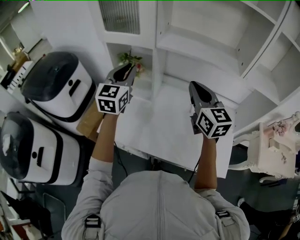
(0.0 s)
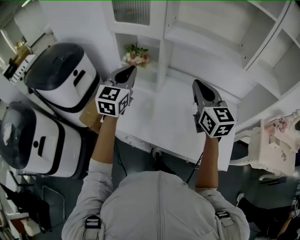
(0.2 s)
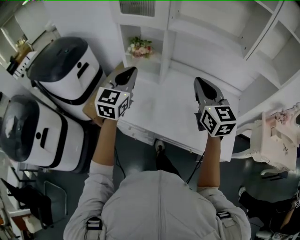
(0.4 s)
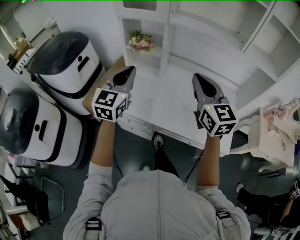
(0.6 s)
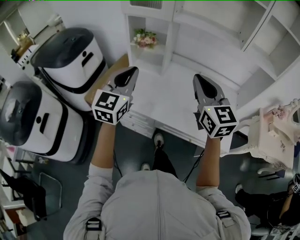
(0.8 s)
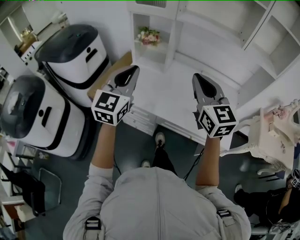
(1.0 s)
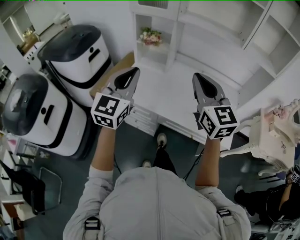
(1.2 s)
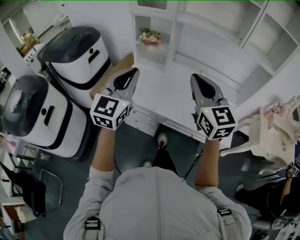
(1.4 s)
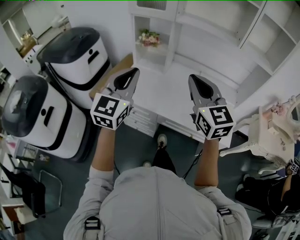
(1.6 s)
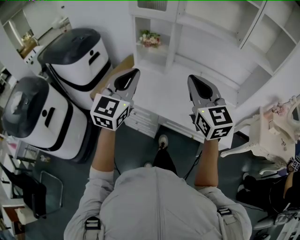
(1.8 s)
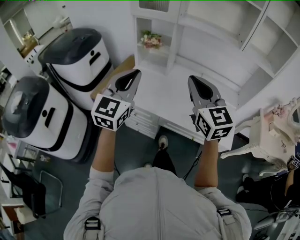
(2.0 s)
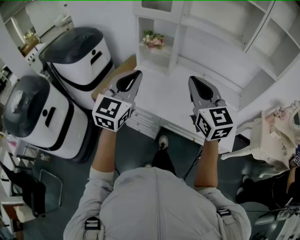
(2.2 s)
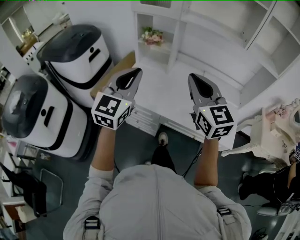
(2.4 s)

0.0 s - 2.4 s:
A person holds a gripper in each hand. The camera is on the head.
0.0 s - 1.2 s: Both grippers move backward, some 25 cm.
1.2 s - 2.4 s: The grippers move only a little.

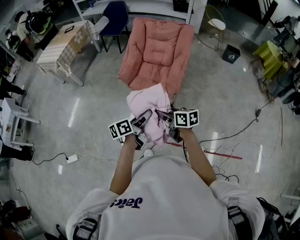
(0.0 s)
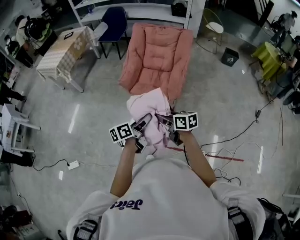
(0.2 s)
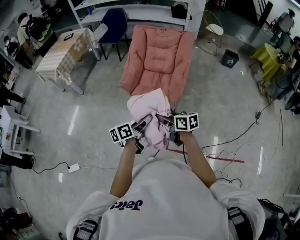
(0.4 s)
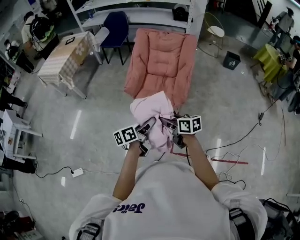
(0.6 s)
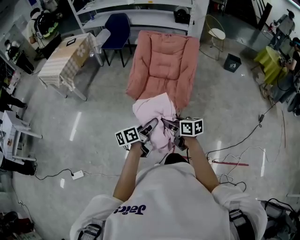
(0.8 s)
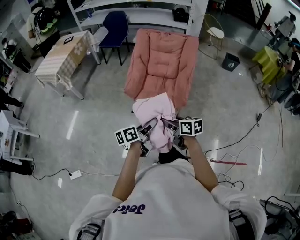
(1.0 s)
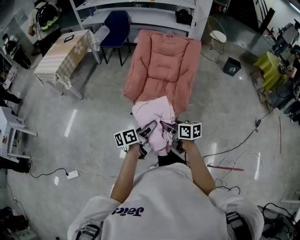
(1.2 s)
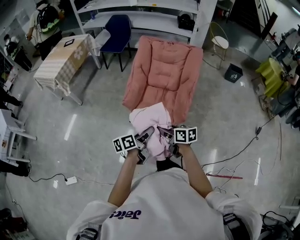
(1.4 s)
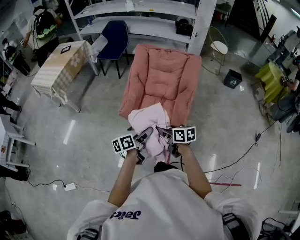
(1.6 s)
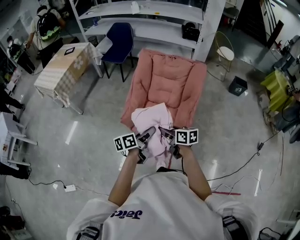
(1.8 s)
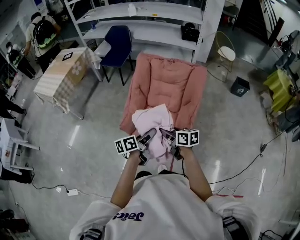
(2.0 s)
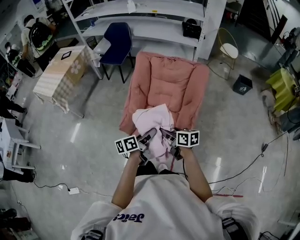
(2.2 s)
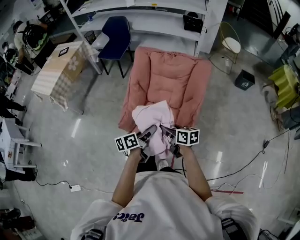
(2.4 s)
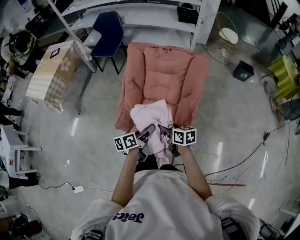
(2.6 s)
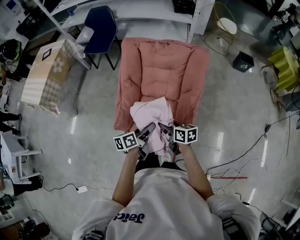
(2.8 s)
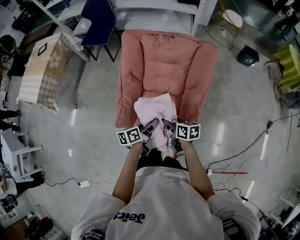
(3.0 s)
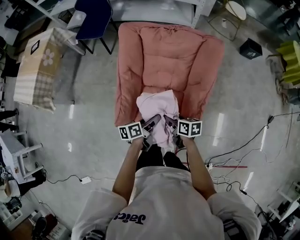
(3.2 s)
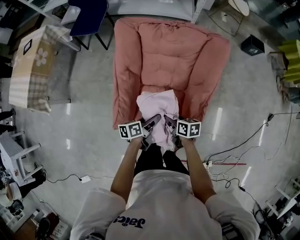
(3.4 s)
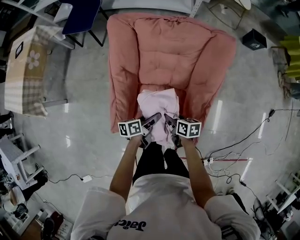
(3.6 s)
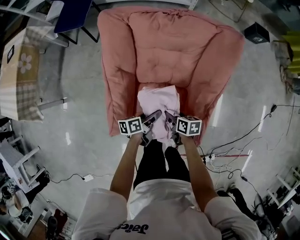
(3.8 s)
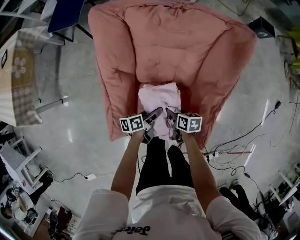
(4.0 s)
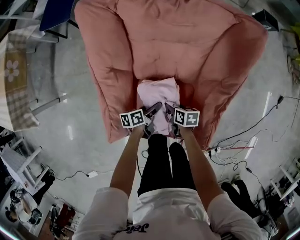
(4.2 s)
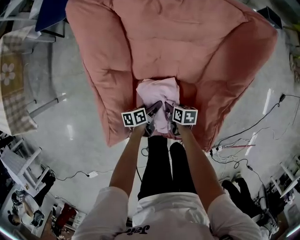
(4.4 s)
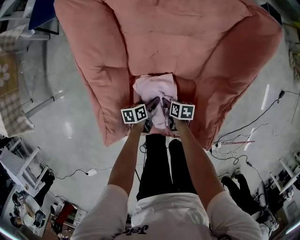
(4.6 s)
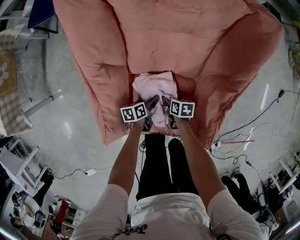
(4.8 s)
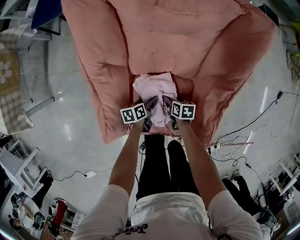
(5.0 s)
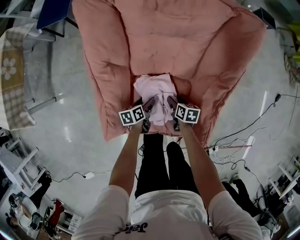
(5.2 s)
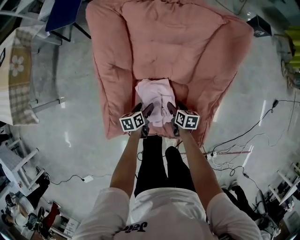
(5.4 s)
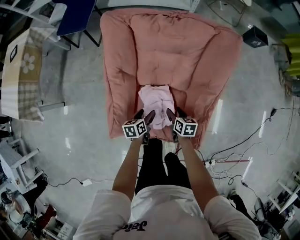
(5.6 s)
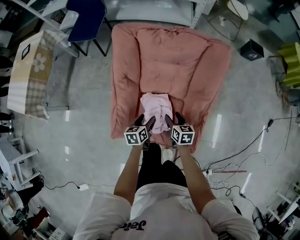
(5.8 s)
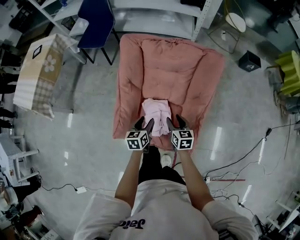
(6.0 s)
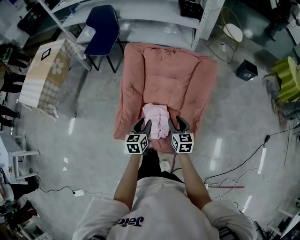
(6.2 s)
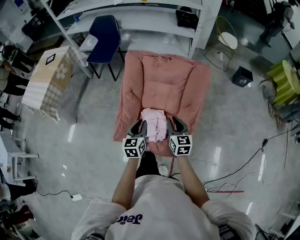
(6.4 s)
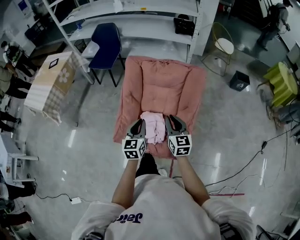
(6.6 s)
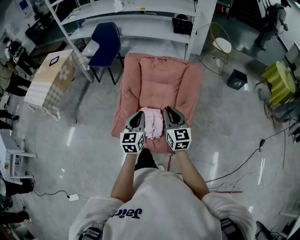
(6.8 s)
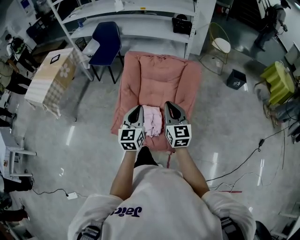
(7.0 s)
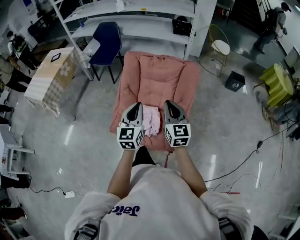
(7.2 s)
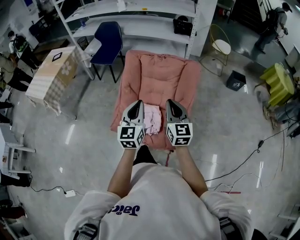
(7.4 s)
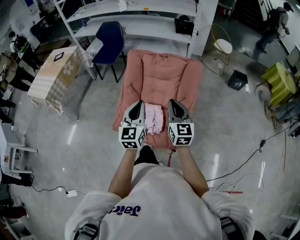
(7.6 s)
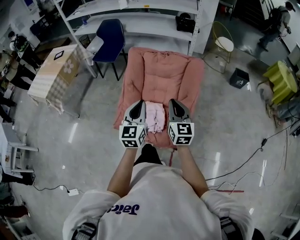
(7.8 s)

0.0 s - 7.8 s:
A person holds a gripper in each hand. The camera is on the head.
0.0 s - 1.6 s: The grippers both shift forward by approximately 20 cm.
1.6 s - 3.2 s: Both grippers move forward and downward, about 35 cm. The right gripper changes its angle by approximately 20 degrees.
3.2 s - 4.6 s: Both grippers move downward, some 35 cm. The left gripper rotates about 20 degrees. Meanwhile the right gripper rotates roughly 30 degrees.
4.6 s - 6.2 s: The two grippers go about 40 cm upward. The left gripper rotates roughly 50 degrees. Meanwhile the right gripper tips its fingers upward by some 30 degrees.
6.2 s - 7.8 s: Both grippers travel together upward and backward, about 25 cm. The right gripper changes its angle by approximately 30 degrees, and closes its fingers. Meanwhile the left gripper rotates some 30 degrees, and closes up.

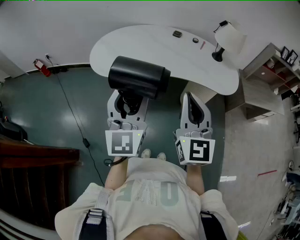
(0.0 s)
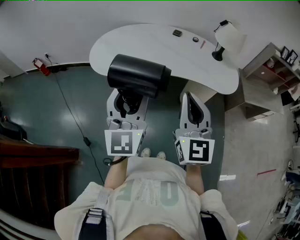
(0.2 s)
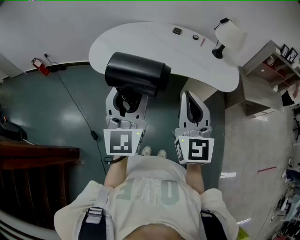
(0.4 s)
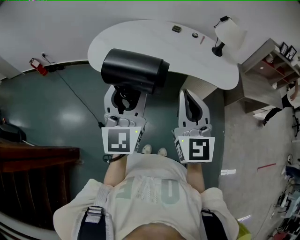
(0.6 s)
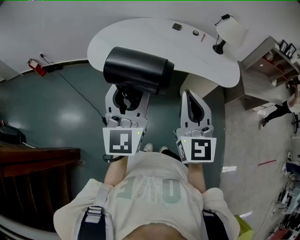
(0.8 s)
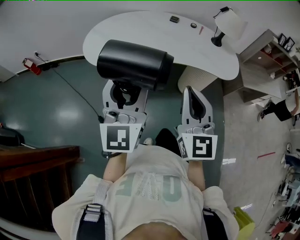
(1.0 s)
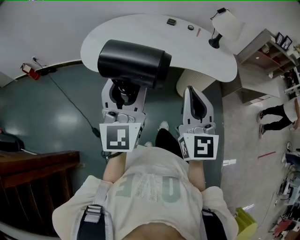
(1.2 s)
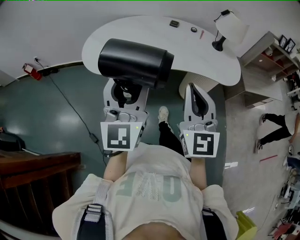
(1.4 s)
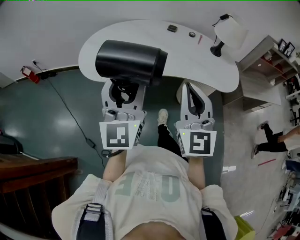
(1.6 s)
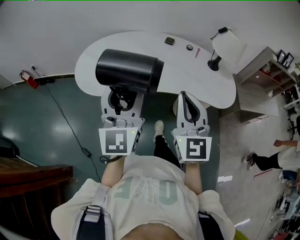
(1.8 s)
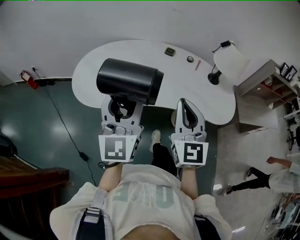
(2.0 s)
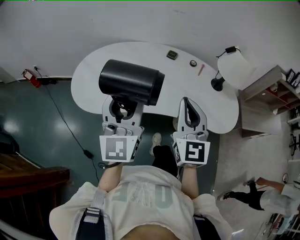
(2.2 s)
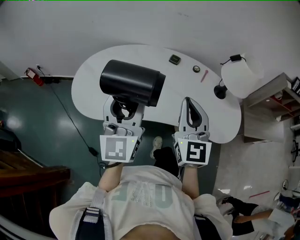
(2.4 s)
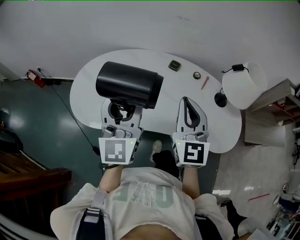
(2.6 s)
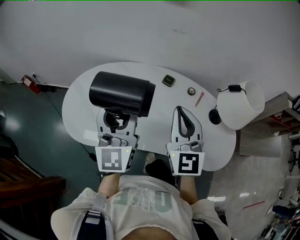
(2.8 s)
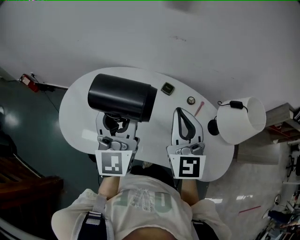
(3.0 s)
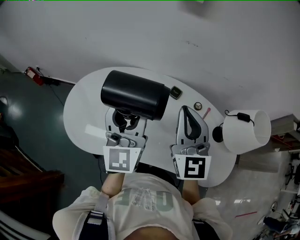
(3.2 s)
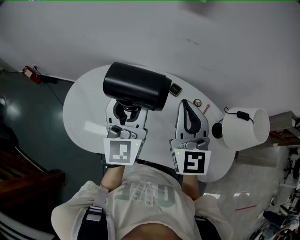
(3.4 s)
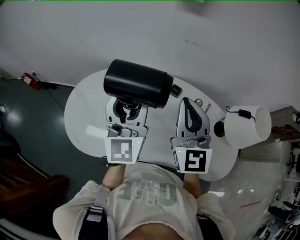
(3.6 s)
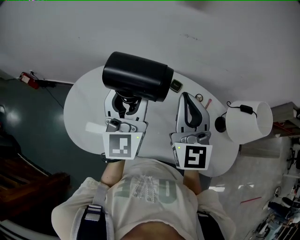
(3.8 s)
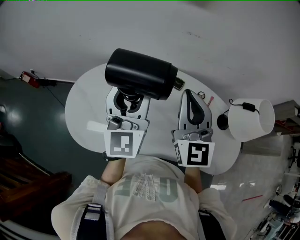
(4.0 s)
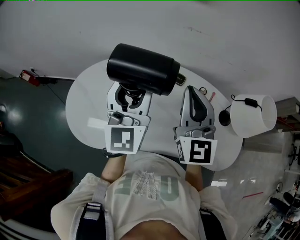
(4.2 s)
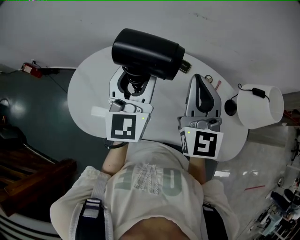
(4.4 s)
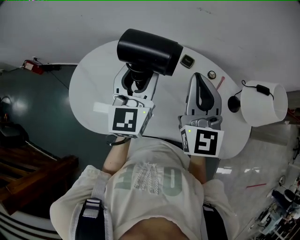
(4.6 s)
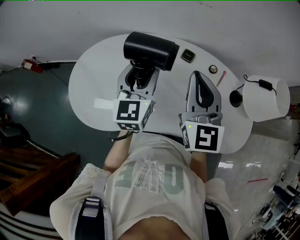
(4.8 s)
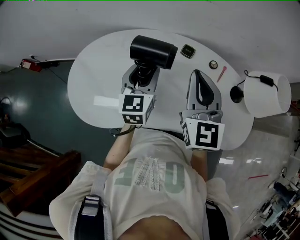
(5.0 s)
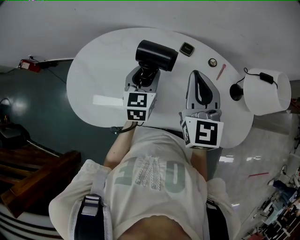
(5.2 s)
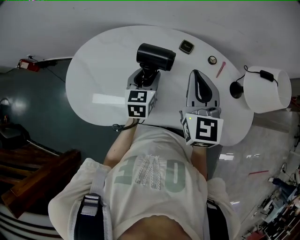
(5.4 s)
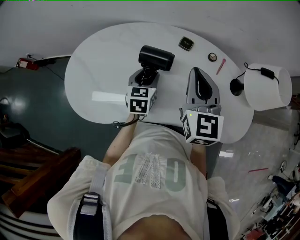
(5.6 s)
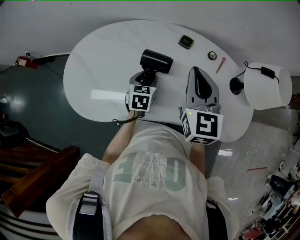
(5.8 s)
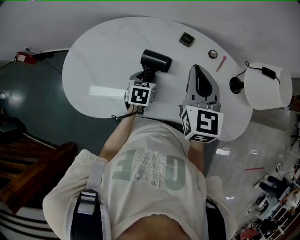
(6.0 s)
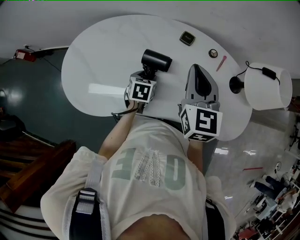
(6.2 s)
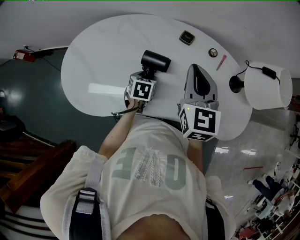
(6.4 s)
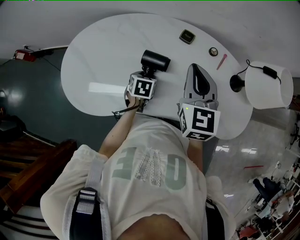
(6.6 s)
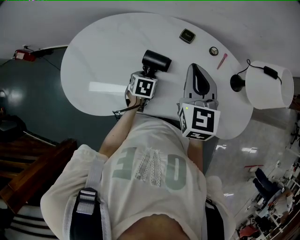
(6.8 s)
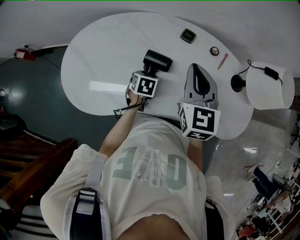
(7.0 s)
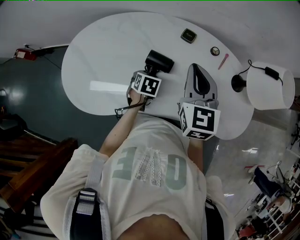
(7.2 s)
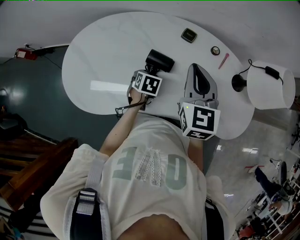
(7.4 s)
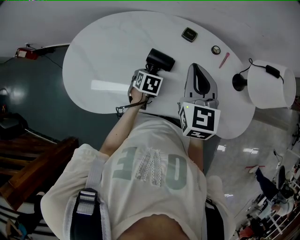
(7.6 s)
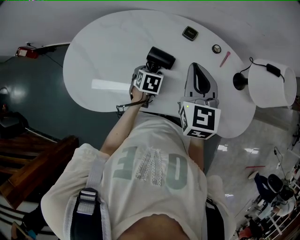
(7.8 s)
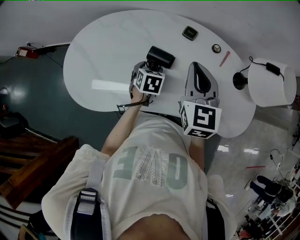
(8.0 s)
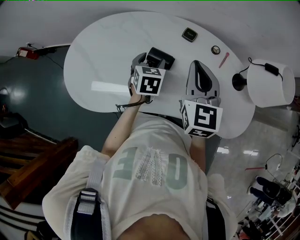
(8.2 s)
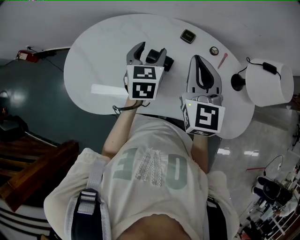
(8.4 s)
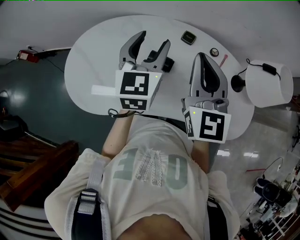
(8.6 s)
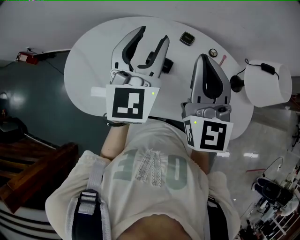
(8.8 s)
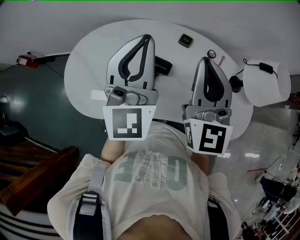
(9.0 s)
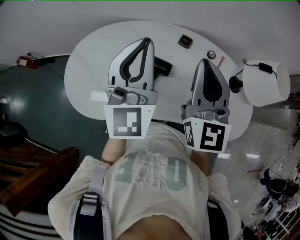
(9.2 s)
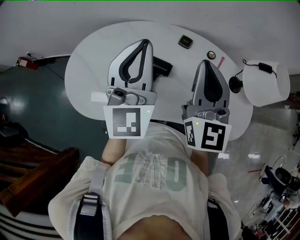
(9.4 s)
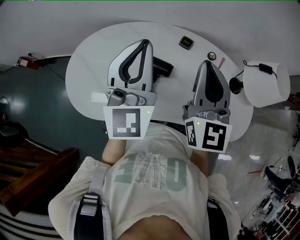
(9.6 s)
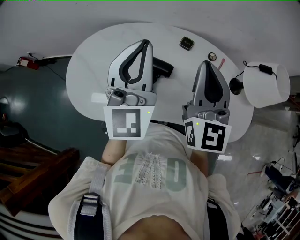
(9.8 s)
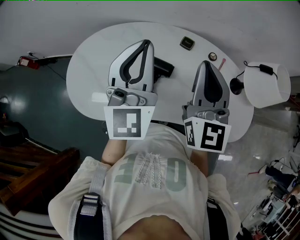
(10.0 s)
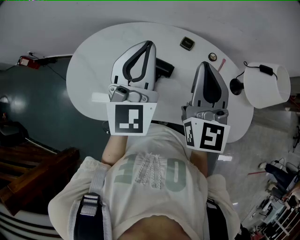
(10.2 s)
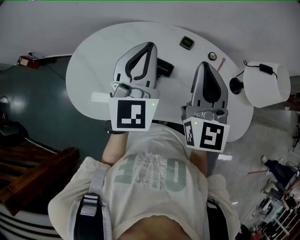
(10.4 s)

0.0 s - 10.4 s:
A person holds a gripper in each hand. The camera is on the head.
0.0 s - 1.4 s: The left gripper changes place by approximately 5 cm; the right gripper shifts by approximately 5 cm.
1.4 s - 3.0 s: The pair of grippers is taken forward, approximately 40 cm.
3.0 s - 4.4 s: The left gripper heads forward, covering some 10 cm; the right gripper is displaced forward by about 5 cm.
4.4 s - 6.0 s: The left gripper is displaced downward by approximately 35 cm, and tilts its fingers approximately 50 degrees downward. The right gripper goes approximately 10 cm downward.
6.0 s - 7.4 s: The grippers make only small movements.
7.4 s - 9.0 s: The left gripper moves upward, some 40 cm, angles its fingers upward, by some 80 degrees, and closes its fingers. Meanwhile the right gripper travels upward by some 10 cm, and turns by some 20 degrees.
9.0 s - 10.4 s: The grippers move only a little.

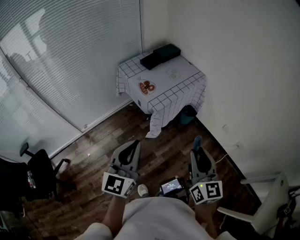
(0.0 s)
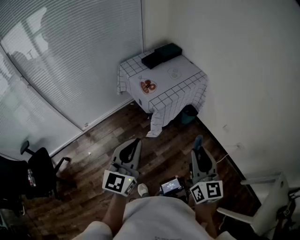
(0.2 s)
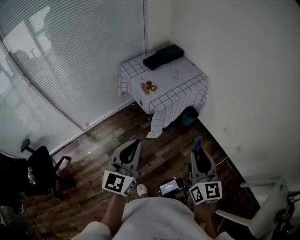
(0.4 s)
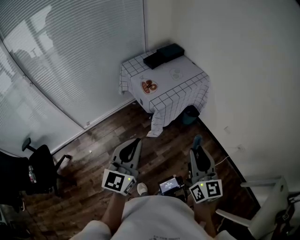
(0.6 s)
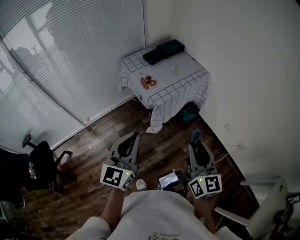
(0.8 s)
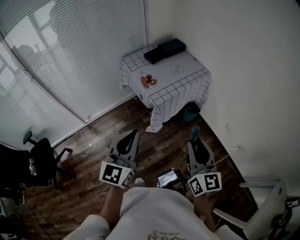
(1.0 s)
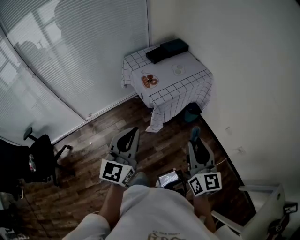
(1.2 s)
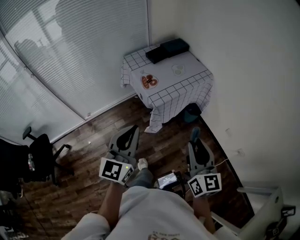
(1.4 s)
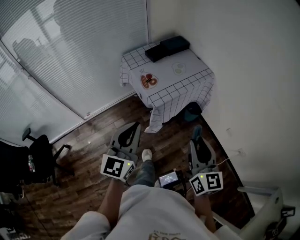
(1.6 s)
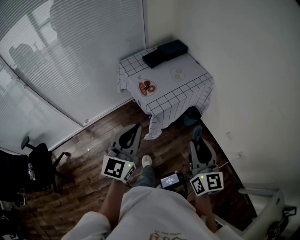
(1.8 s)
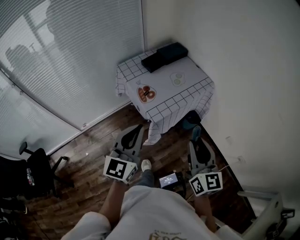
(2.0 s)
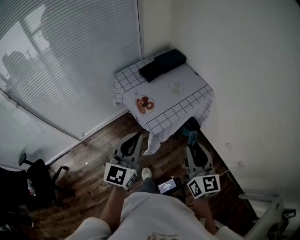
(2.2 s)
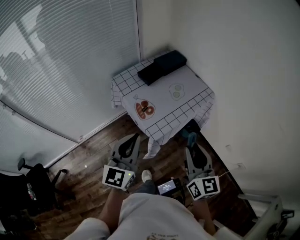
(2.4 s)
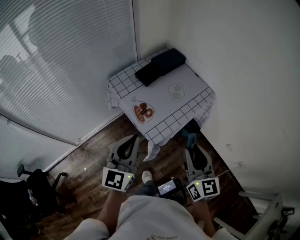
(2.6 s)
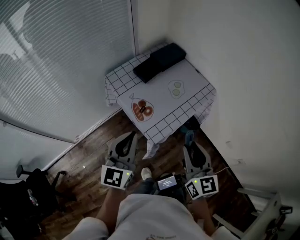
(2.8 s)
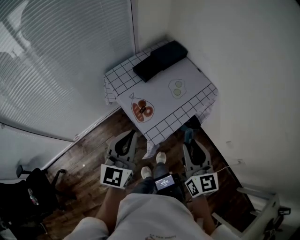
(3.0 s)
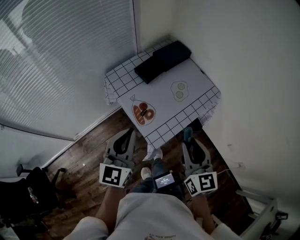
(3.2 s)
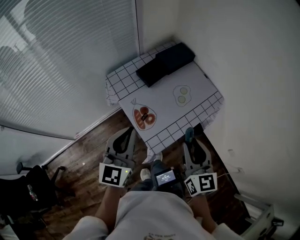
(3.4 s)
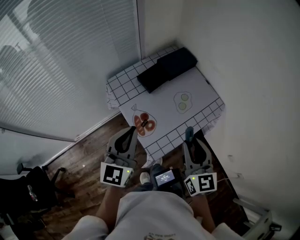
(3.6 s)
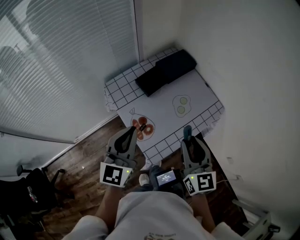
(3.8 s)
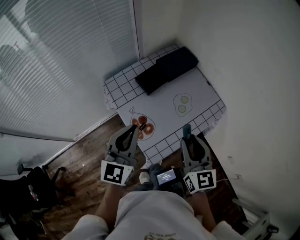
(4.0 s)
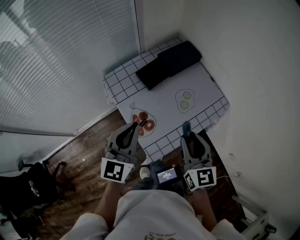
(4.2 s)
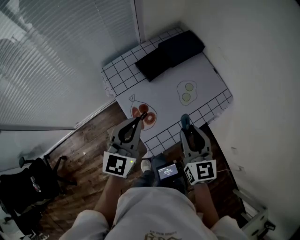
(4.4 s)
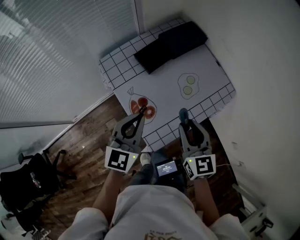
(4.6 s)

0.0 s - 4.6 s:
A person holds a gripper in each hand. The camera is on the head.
0.0 s - 1.6 s: Both grippers move forward, some 10 cm.
1.6 s - 3.0 s: The grippers both shift forward by some 25 cm.
3.0 s - 4.6 s: The two grippers go approximately 20 cm forward and downward.
